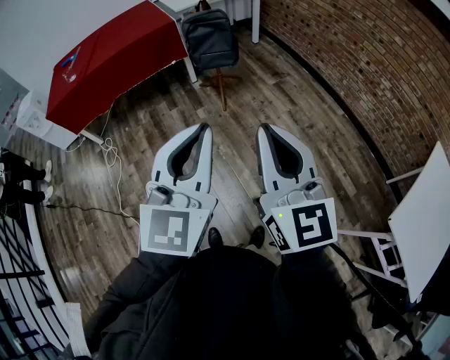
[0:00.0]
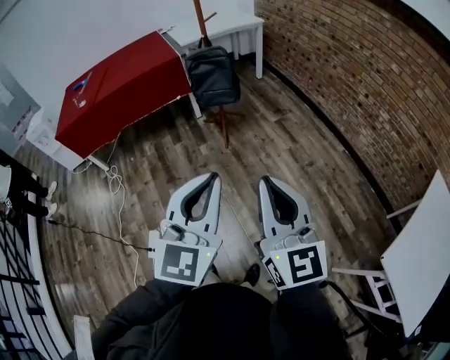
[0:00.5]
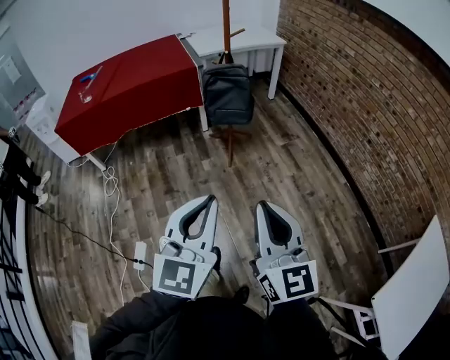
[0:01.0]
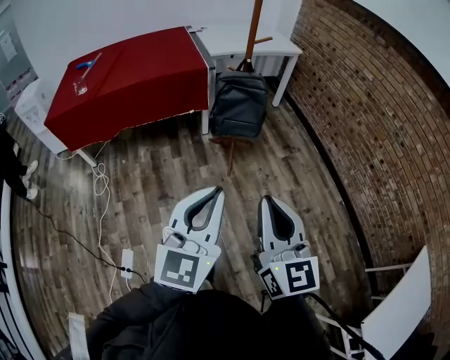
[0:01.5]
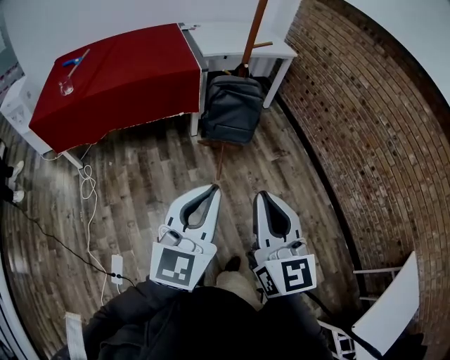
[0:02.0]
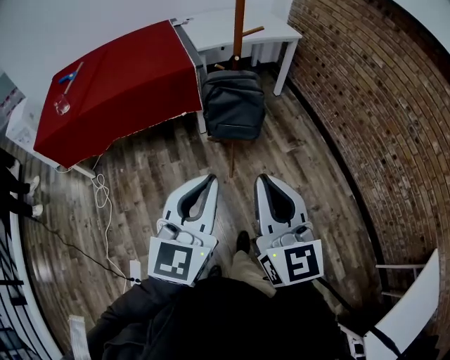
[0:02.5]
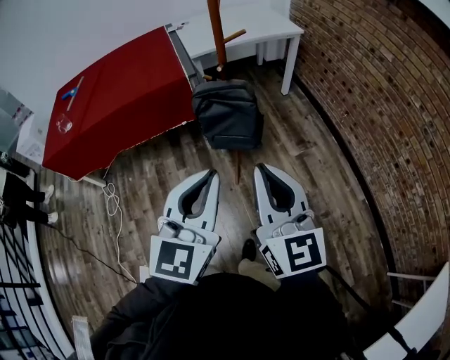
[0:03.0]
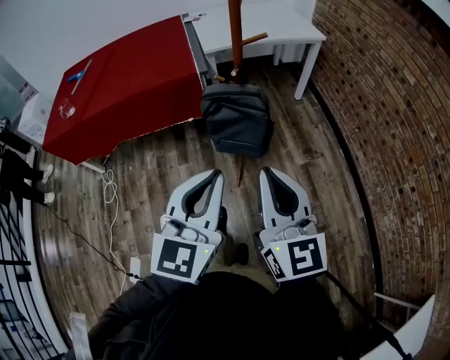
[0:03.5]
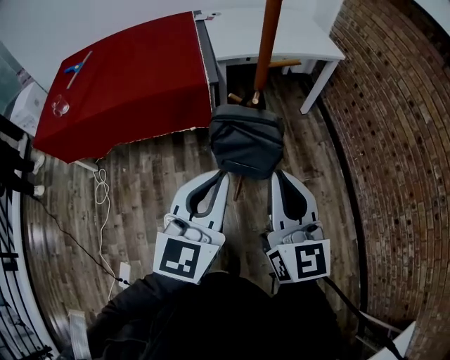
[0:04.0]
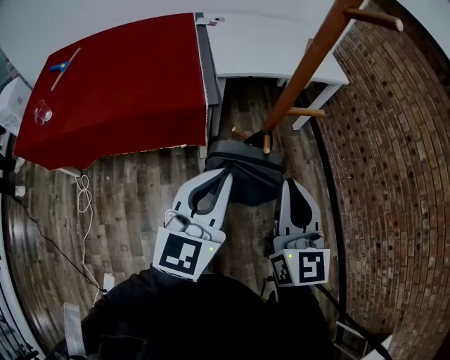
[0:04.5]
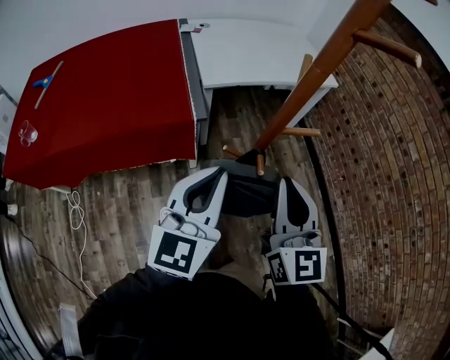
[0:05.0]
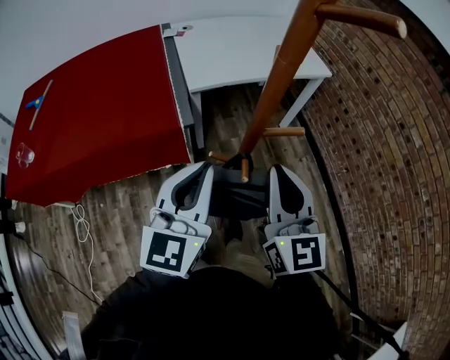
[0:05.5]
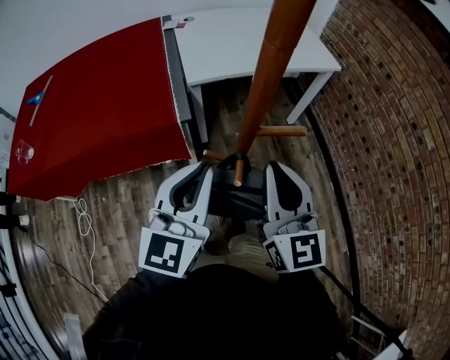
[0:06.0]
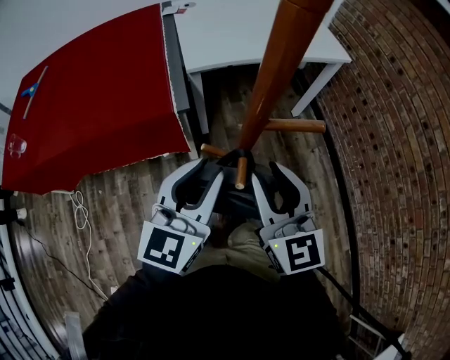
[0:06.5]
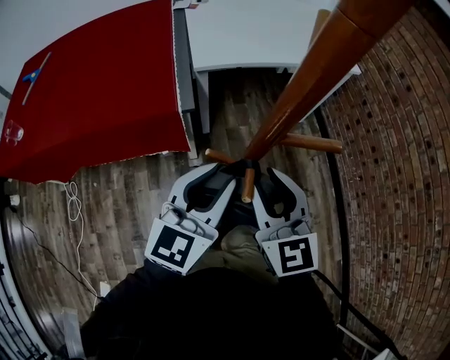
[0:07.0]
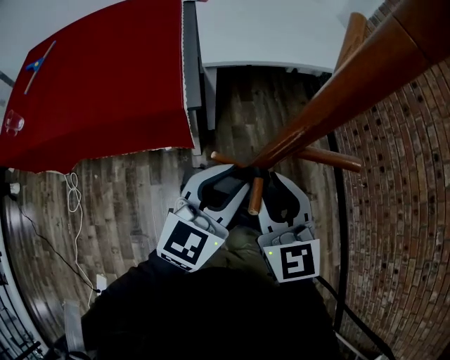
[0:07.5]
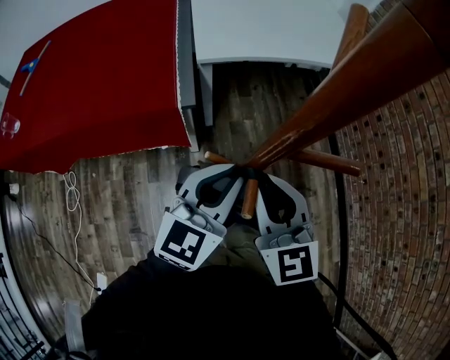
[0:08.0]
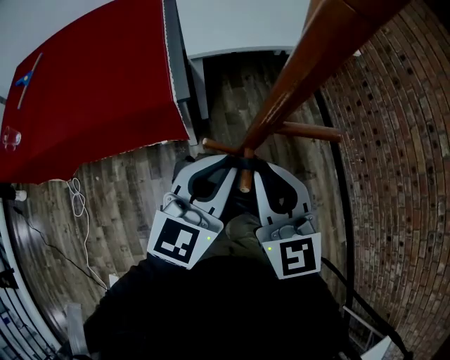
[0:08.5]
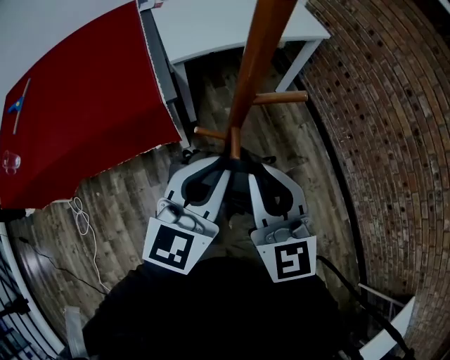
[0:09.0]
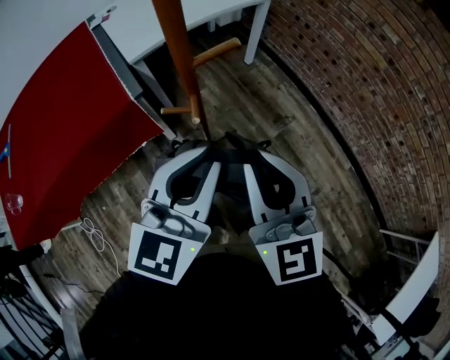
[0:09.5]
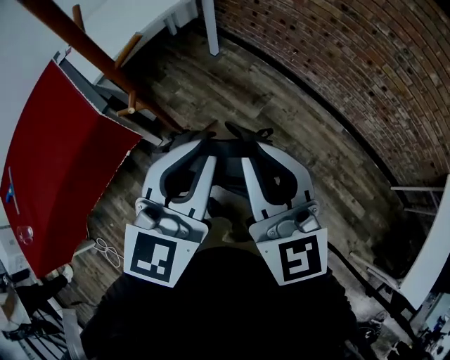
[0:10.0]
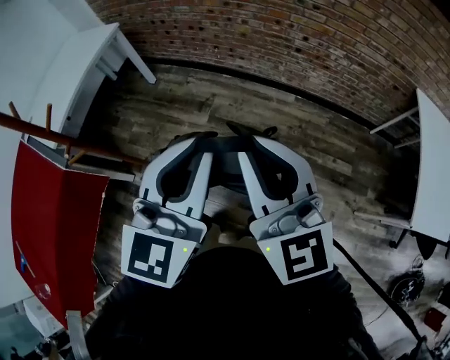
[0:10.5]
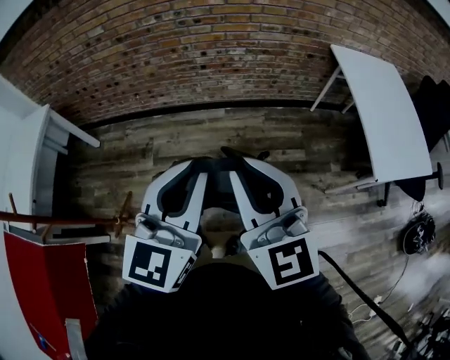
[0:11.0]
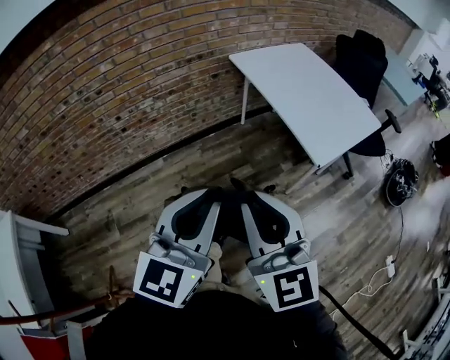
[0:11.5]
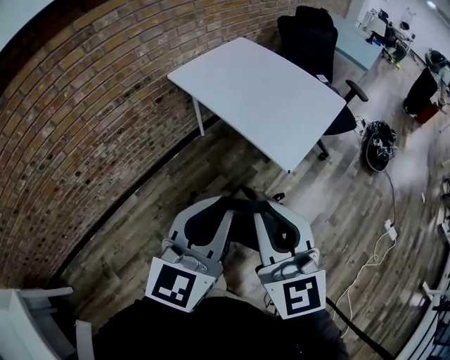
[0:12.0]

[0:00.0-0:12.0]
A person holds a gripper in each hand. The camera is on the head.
0:00.0 to 0:02.0: Both grippers move forward, approximately 30 cm.
0:02.0 to 0:04.0: Both grippers travel together forward, approximately 40 cm.
0:04.0 to 0:06.0: The two grippers go some 25 cm forward.
0:06.0 to 0:08.0: The left gripper heads downward and forward, covering roughly 15 cm, while the right gripper travels downward by about 10 cm, and turns by approximately 20 degrees.
0:08.0 to 0:10.0: The right gripper changes place by approximately 35 cm, and swivels roughly 40 degrees. Meanwhile the left gripper changes place by about 35 cm, and changes its angle by some 30 degrees.
0:10.0 to 0:12.0: Both grippers are carried some 80 cm. The left gripper swivels approximately 90 degrees. Meanwhile the right gripper changes its angle by some 90 degrees.

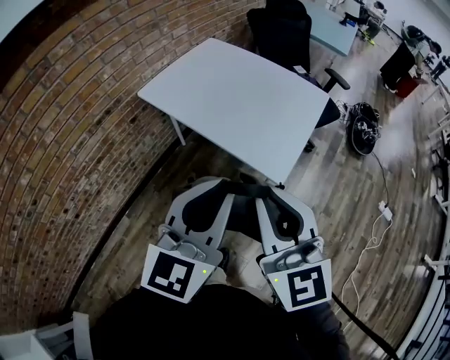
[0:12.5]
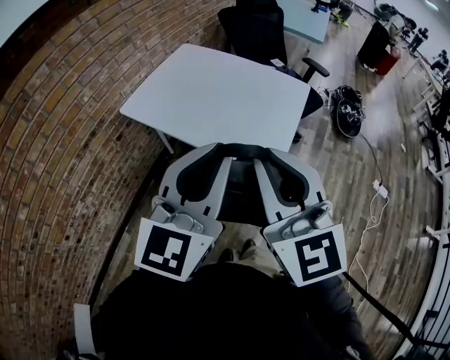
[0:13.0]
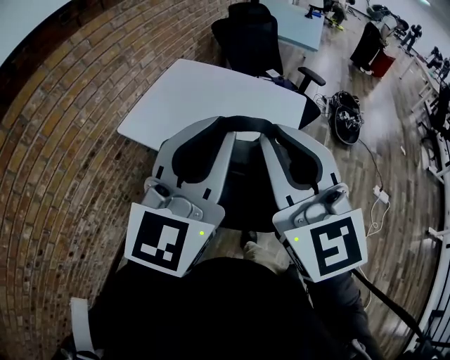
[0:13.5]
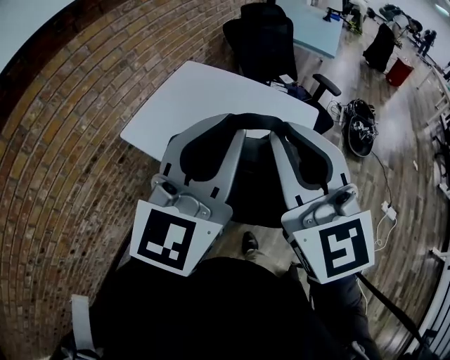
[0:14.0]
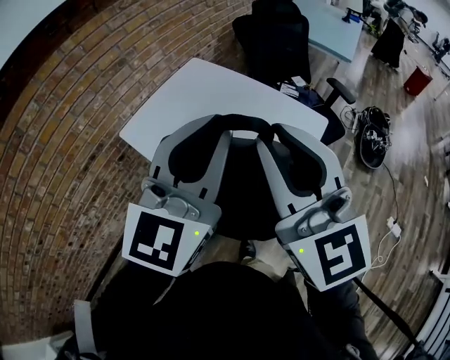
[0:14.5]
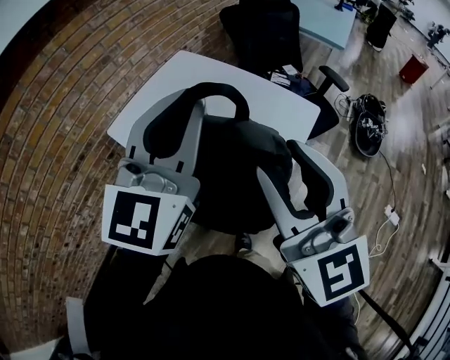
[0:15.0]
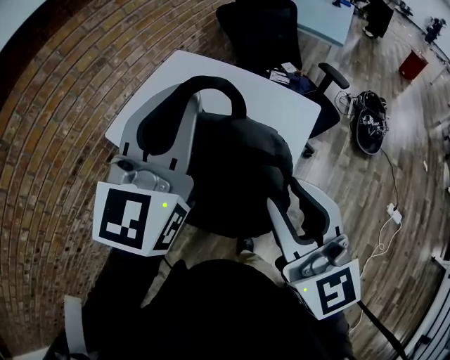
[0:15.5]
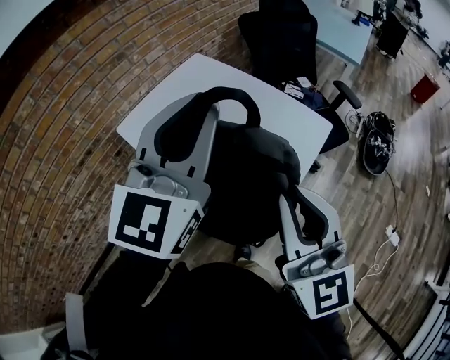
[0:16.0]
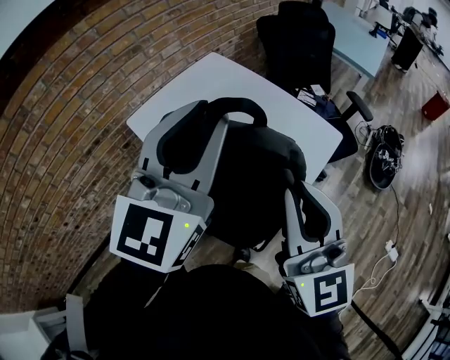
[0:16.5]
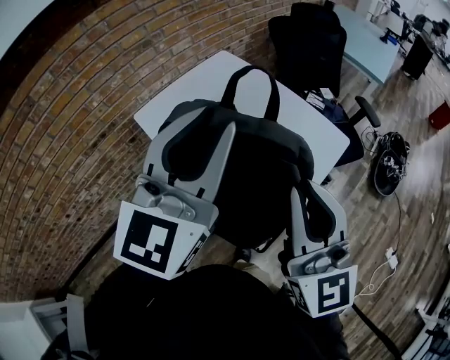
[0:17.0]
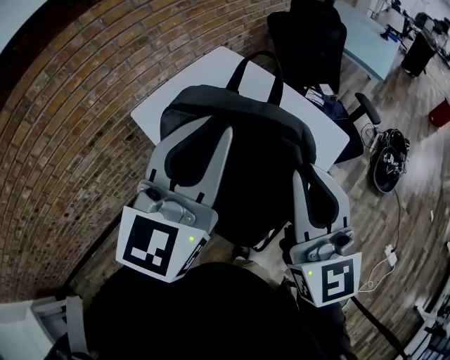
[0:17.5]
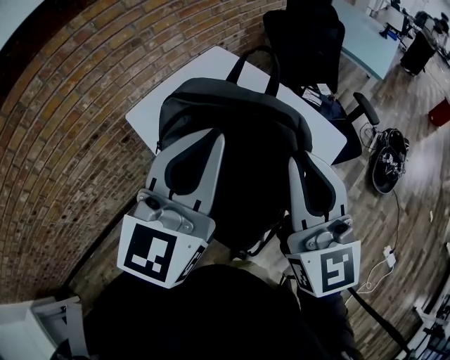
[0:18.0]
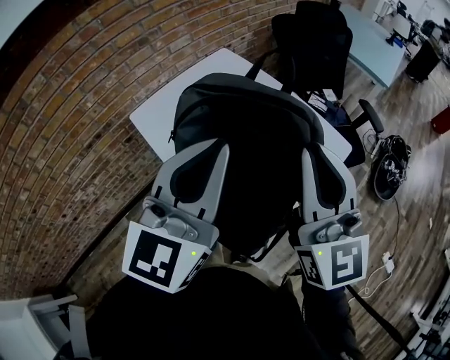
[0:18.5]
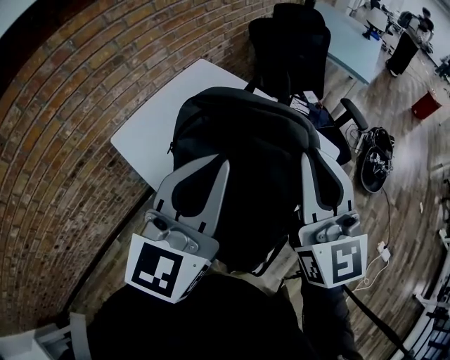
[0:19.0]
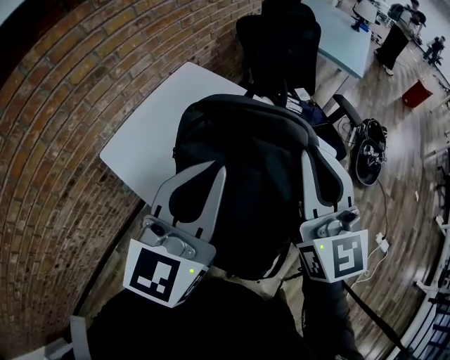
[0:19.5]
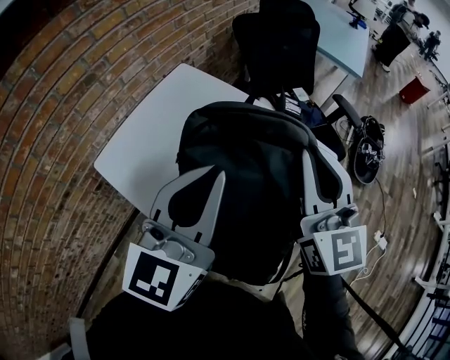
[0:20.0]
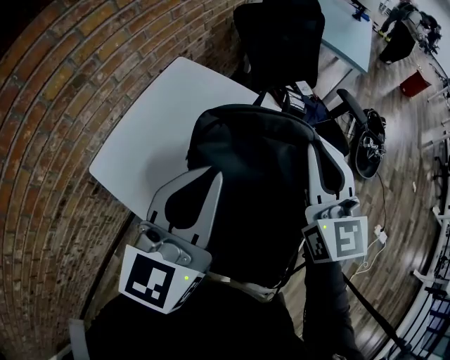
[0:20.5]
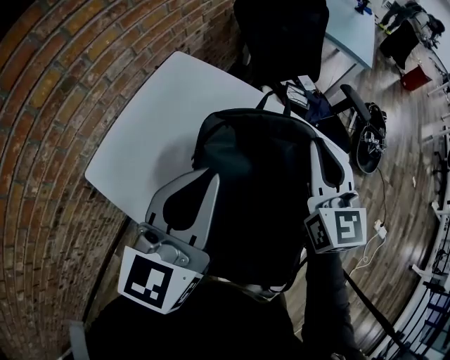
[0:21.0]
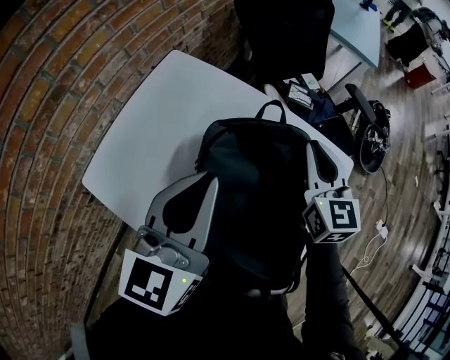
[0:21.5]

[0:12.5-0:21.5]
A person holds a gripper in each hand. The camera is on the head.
0:12.5 to 0:14.5: The grippers both shift forward and upward by some 30 cm.
0:14.5 to 0:17.0: The right gripper is displaced downward by roughly 5 cm, and opens, then closes again.
0:17.0 to 0:19.5: The right gripper moves forward, approximately 20 cm. The left gripper moves forward and downward, about 15 cm.
0:19.5 to 0:21.5: The left gripper is displaced forward, downward and to the left by some 20 cm. Meanwhile the right gripper travels forward and downward by some 25 cm, and turns by roughly 20 degrees.

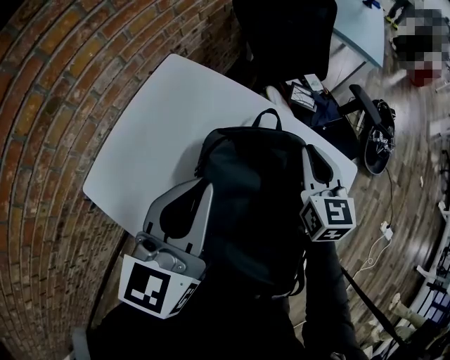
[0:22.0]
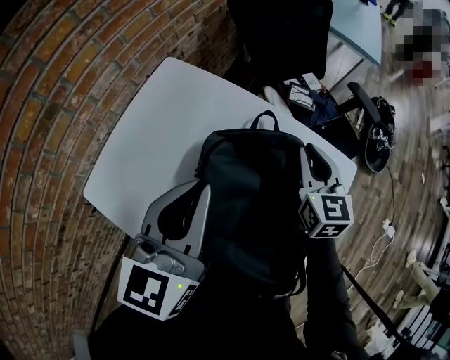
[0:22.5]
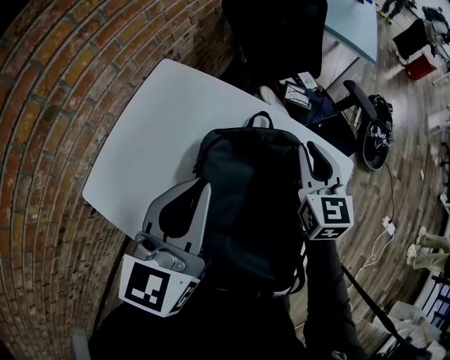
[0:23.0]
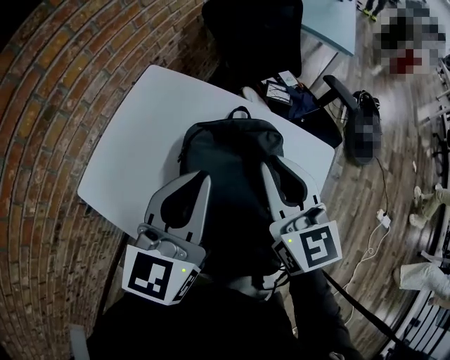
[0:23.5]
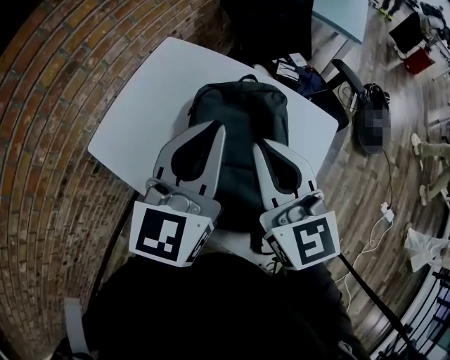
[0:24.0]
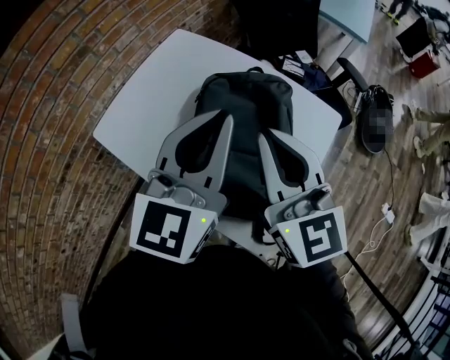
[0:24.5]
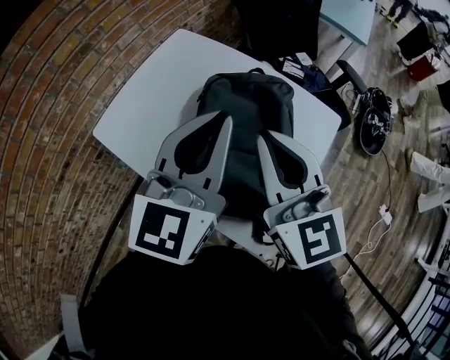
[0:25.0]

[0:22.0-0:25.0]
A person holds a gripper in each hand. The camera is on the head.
0:22.0 to 0:23.5: The right gripper is displaced backward and upward by approximately 15 cm, while the left gripper heads to the right, covering some 5 cm.
0:23.5 to 0:25.0: The two grippers go roughly 15 cm backward and upward.

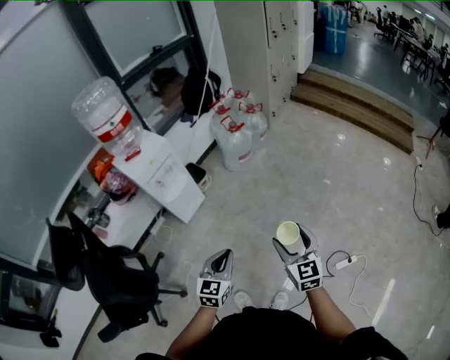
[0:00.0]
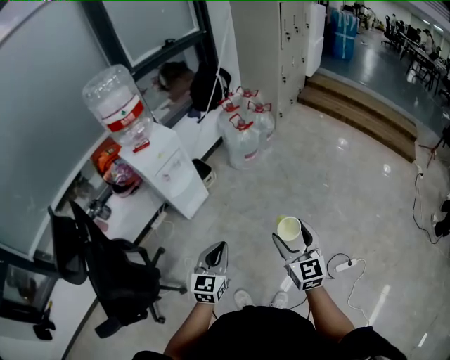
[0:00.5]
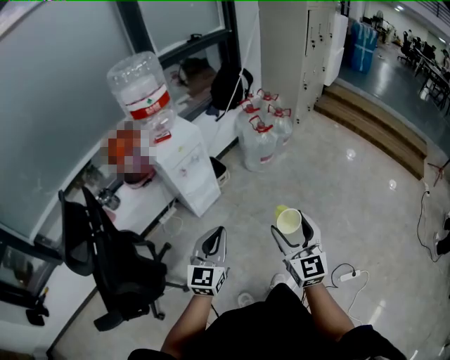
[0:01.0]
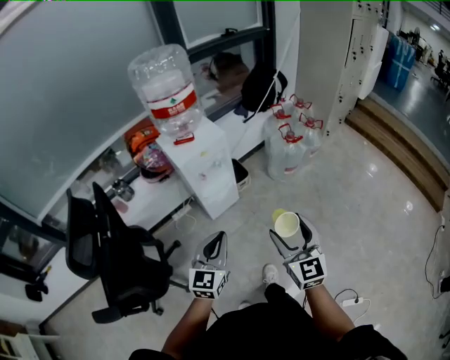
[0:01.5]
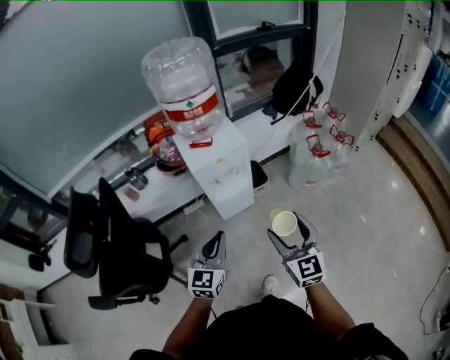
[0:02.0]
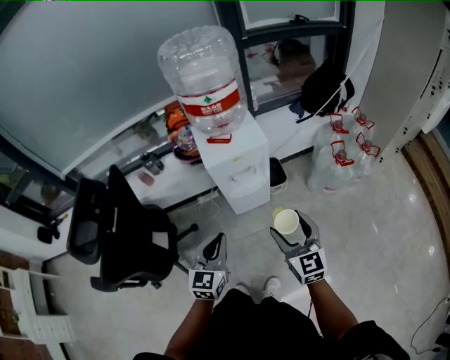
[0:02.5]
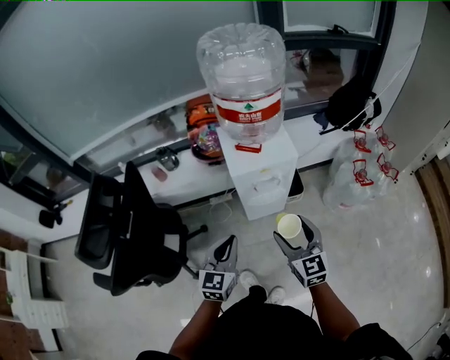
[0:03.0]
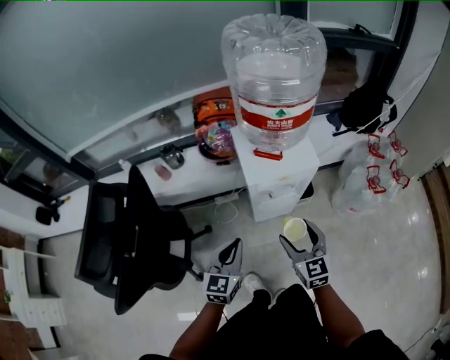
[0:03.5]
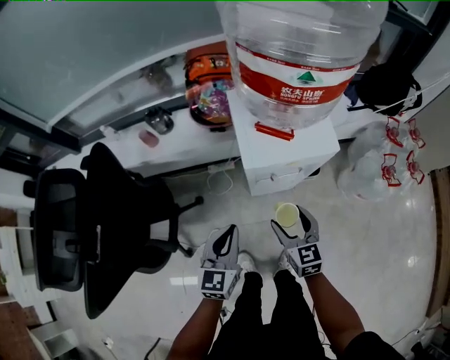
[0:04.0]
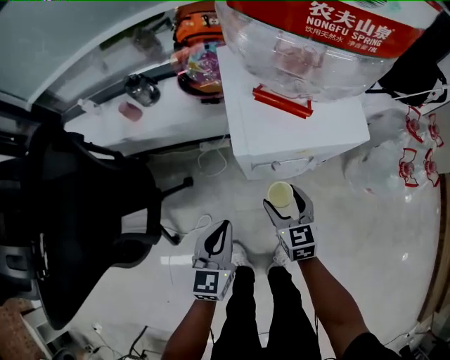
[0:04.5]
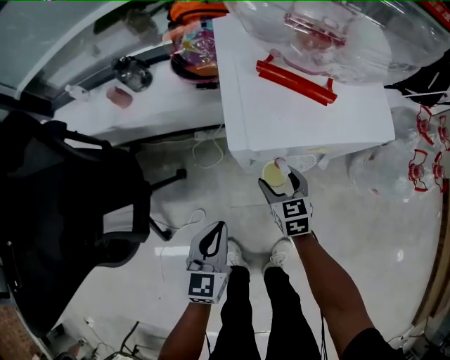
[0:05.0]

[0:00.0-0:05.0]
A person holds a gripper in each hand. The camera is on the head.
0:00.0 to 0:02.5: The left gripper changes place by some 30 cm, and swivels approximately 40 degrees, while the right gripper changes place by approximately 40 cm, and swivels approximately 40 degrees.
0:02.5 to 0:05.0: The right gripper is displaced downward and forward by approximately 50 cm, and turns by roughly 30 degrees; the left gripper goes about 30 cm downward and forward, and changes its angle by some 20 degrees.
